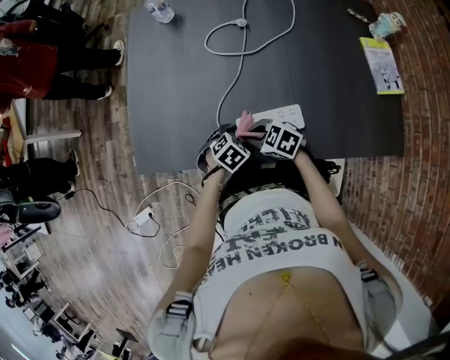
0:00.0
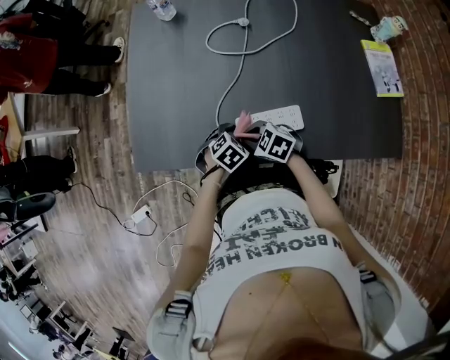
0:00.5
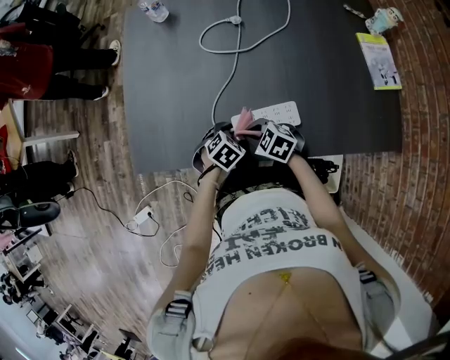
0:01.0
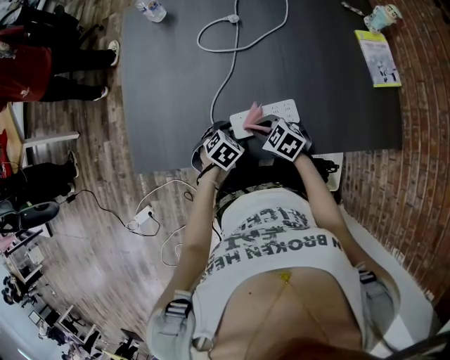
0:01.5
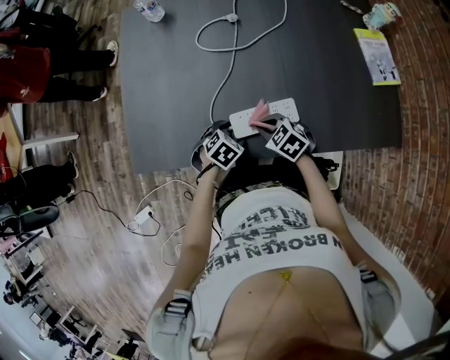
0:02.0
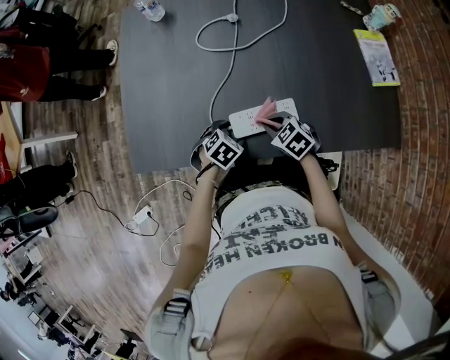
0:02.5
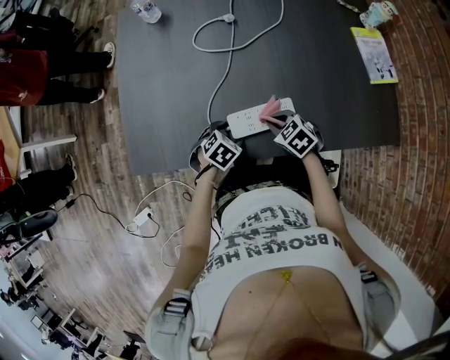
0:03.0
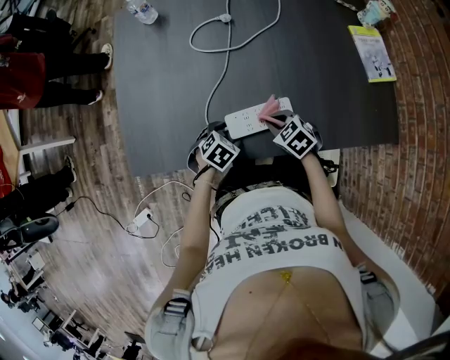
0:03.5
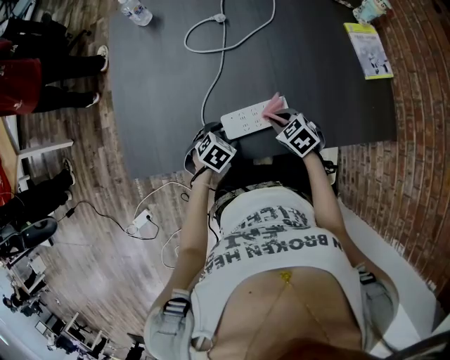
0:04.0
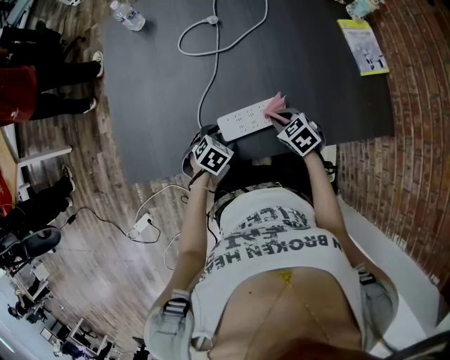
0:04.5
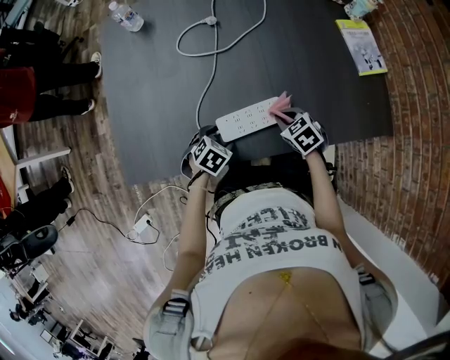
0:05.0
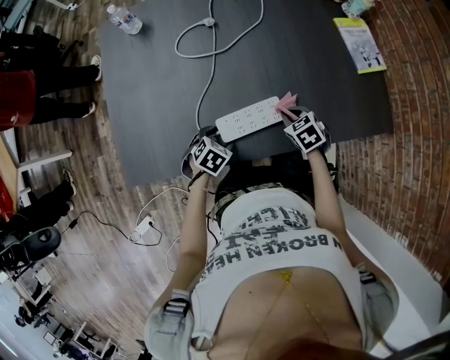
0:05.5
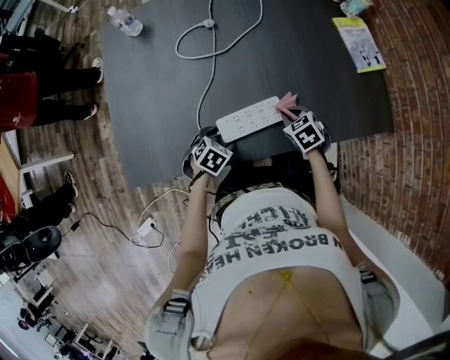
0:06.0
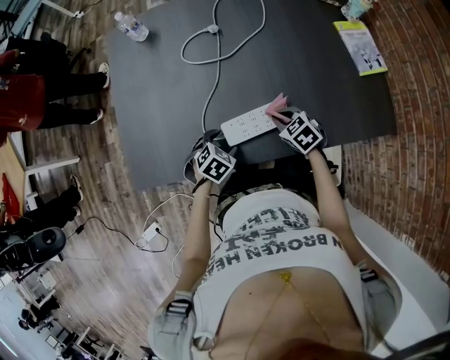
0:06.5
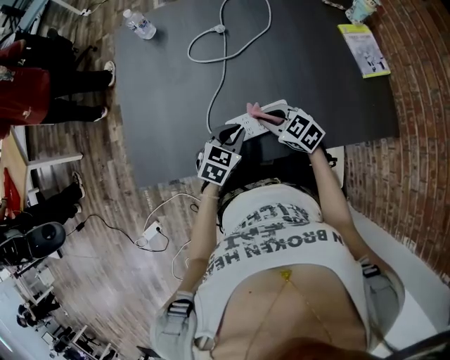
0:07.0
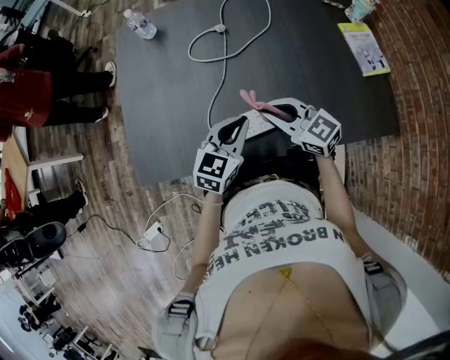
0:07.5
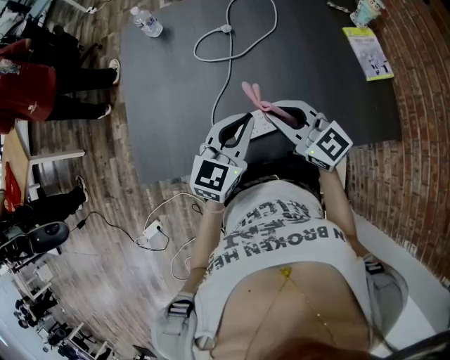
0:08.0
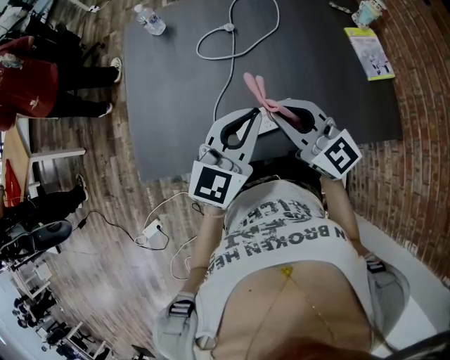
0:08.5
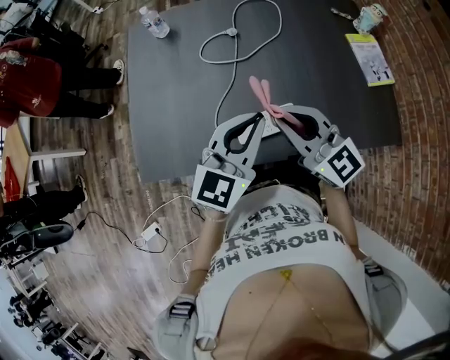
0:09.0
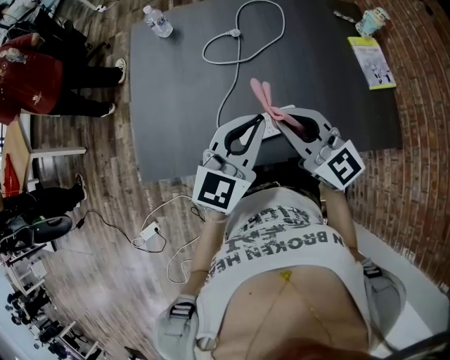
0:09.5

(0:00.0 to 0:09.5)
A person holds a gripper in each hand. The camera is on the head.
0:00.0 - 0:02.0: The right gripper moves some 5 cm.
0:02.0 - 0:04.0: The right gripper shifts by approximately 10 cm.
0:04.0 - 0:05.5: The right gripper goes roughly 5 cm to the right.
0:05.5 - 0:07.5: The right gripper goes approximately 20 cm upward and to the left, and tips its fingers upward by roughly 50 degrees; the left gripper goes approximately 20 cm upward, tips its fingers upward by some 40 degrees, and closes its fingers.
0:07.5 - 0:09.5: The two grippers go roughly 15 cm upward.

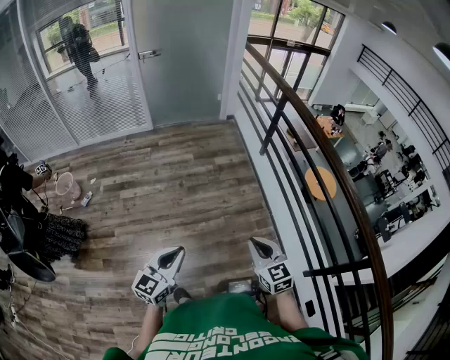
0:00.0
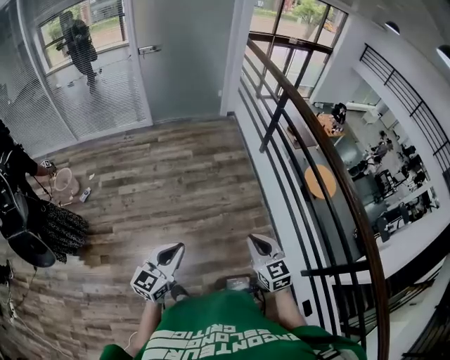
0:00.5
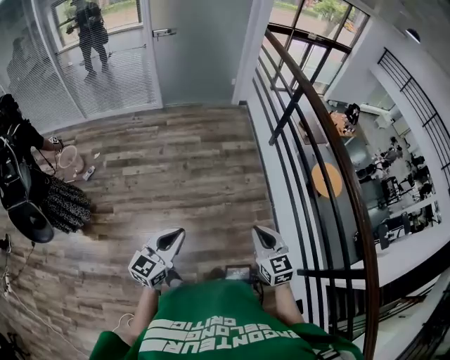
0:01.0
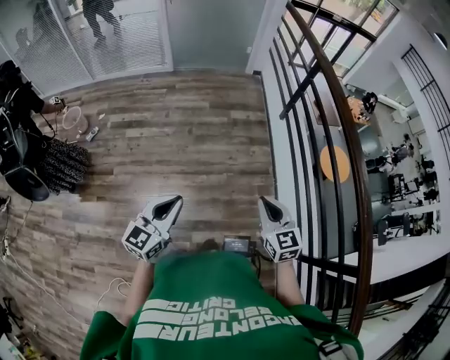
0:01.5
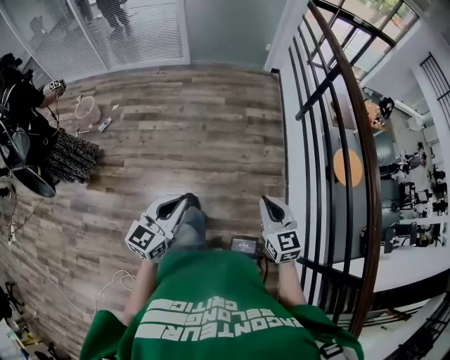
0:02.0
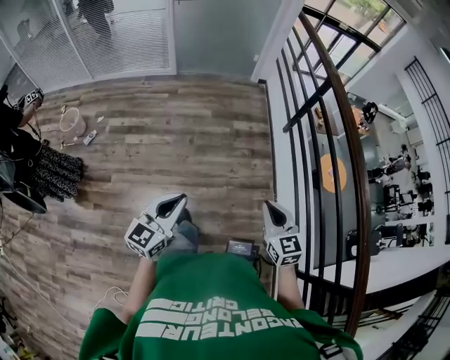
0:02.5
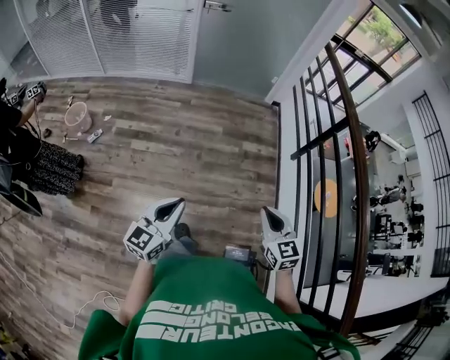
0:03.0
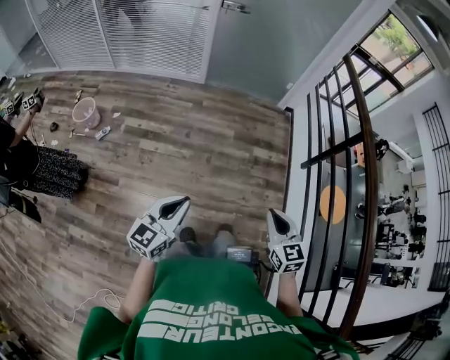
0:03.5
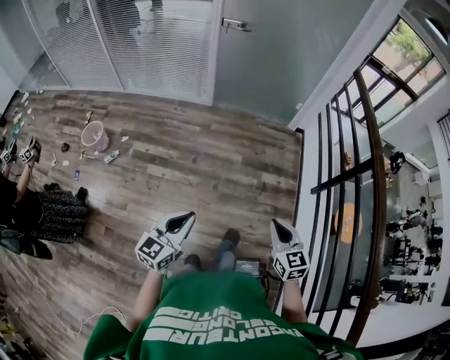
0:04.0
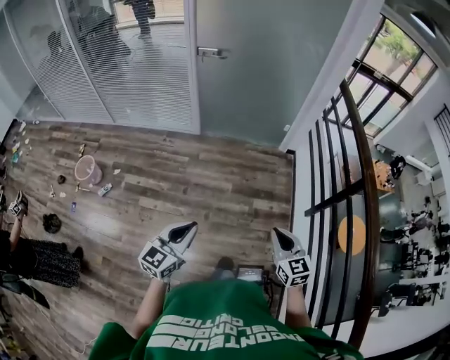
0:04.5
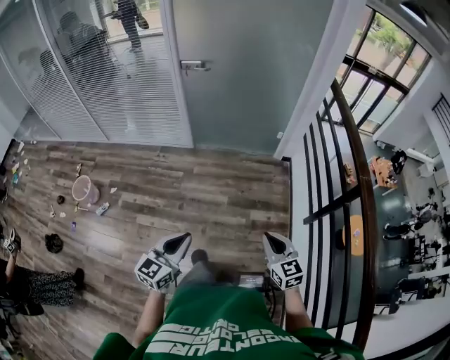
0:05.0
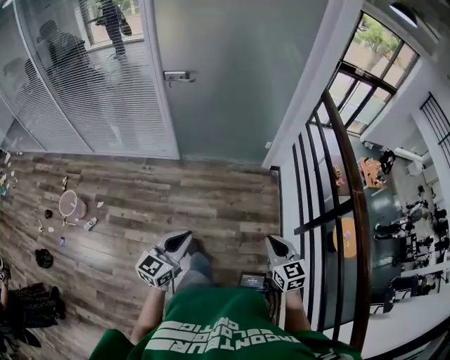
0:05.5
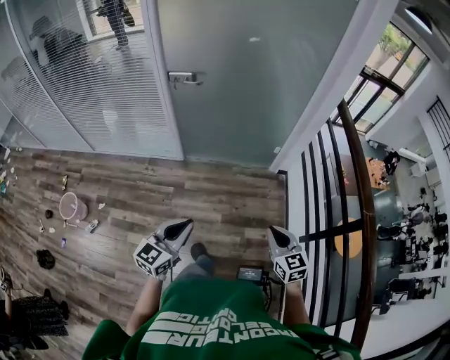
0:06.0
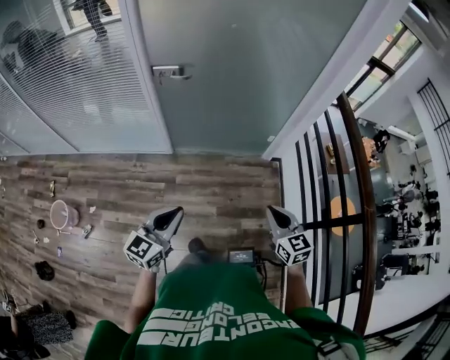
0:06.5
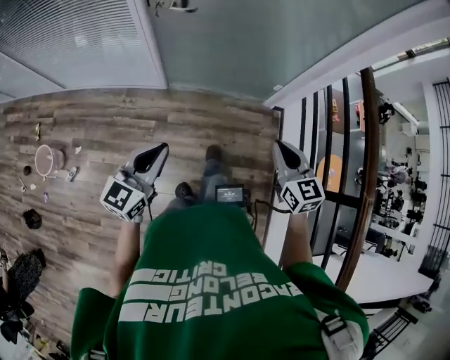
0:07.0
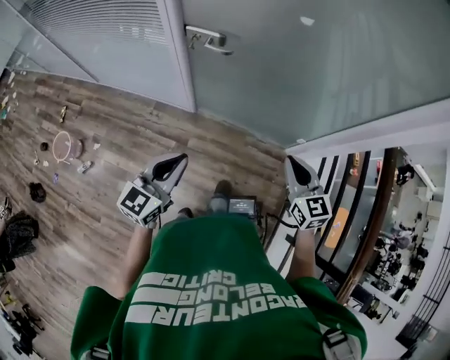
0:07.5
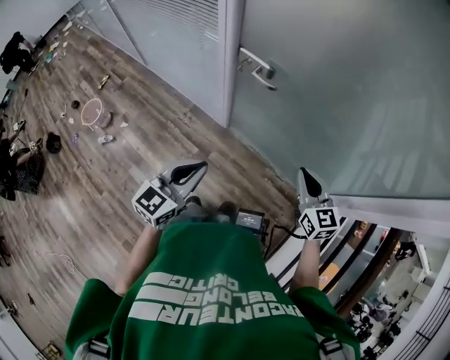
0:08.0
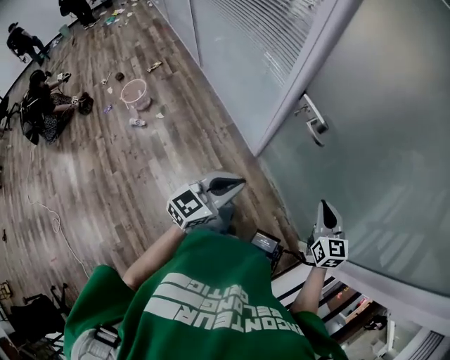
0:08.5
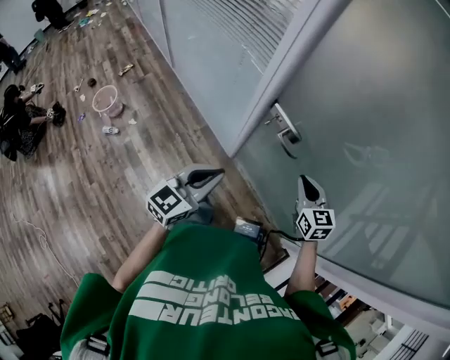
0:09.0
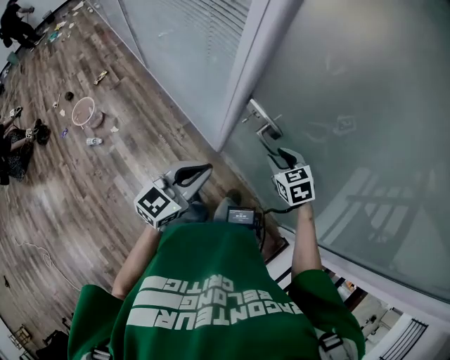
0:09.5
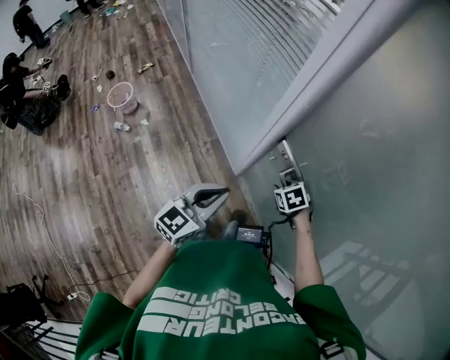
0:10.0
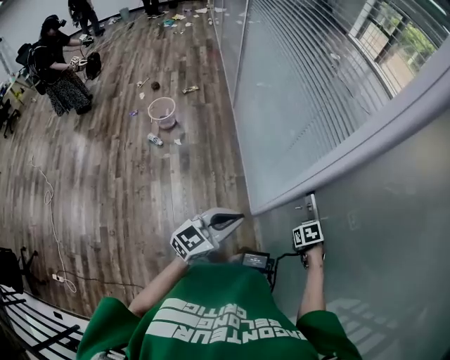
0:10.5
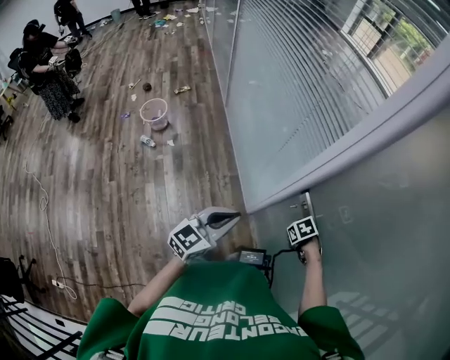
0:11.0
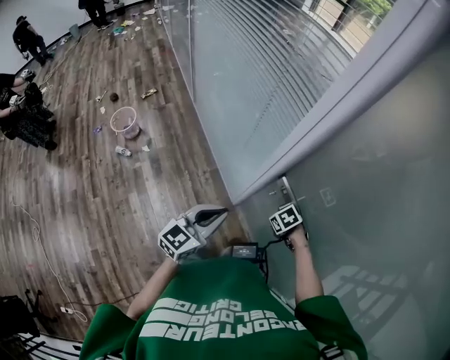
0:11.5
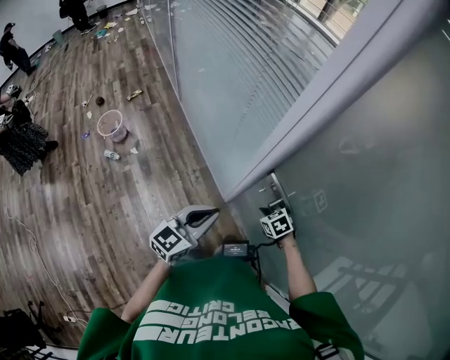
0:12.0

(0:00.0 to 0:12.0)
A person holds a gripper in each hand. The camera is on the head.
0:00.0 - 0:02.0: The right gripper is displaced forward by approximately 10 cm, while the left gripper is displaced forward by roughly 5 cm.
0:02.0 - 0:04.0: The grippers both shift forward by roughly 35 cm.
0:04.0 - 0:06.0: Both grippers move forward, roughly 40 cm.
0:06.0 - 0:08.0: The right gripper changes place by roughly 50 cm, and swivels some 30 degrees. Meanwhile the left gripper changes place by about 35 cm, and turns by roughly 30 degrees.
0:08.0 - 0:10.0: The left gripper heads forward, covering about 20 cm, and turns by some 20 degrees. Meanwhile the right gripper travels forward, downward and to the left by approximately 35 cm, tilts its fingers some 50 degrees downward, and opens its fingers.
0:10.0 - 0:12.0: The right gripper heads downward, covering approximately 5 cm, and closes up.

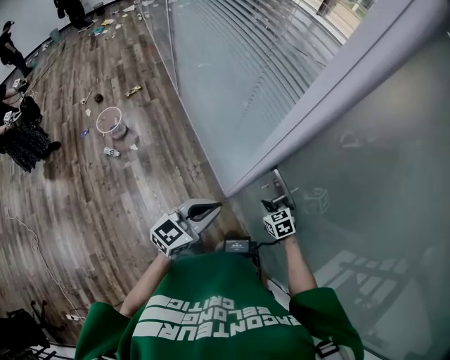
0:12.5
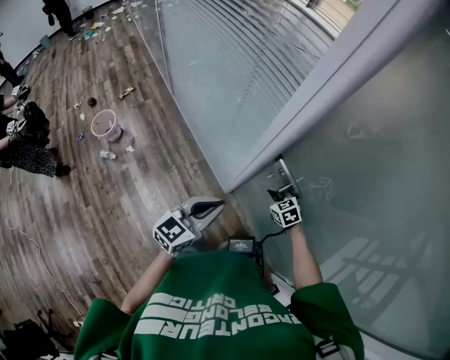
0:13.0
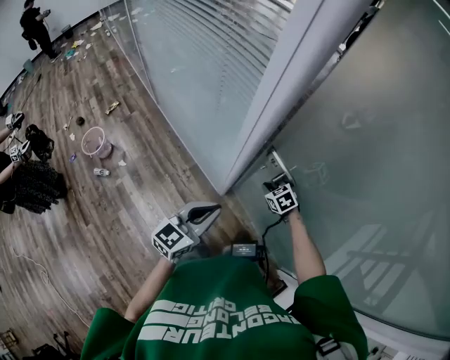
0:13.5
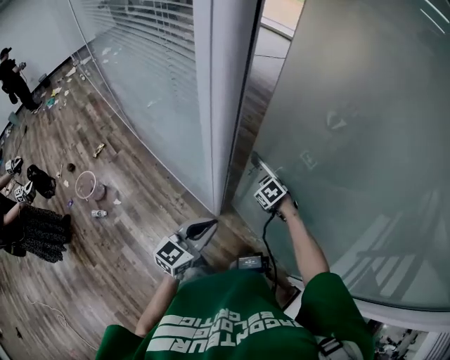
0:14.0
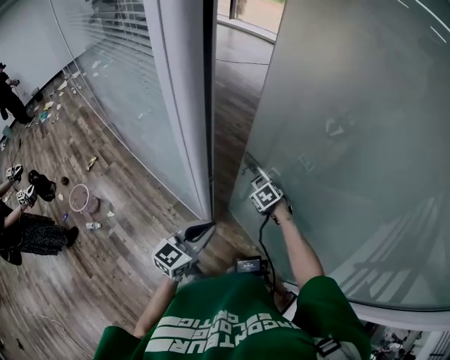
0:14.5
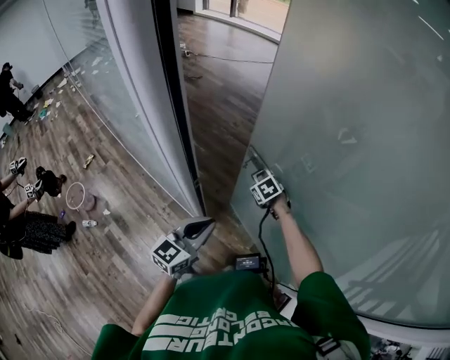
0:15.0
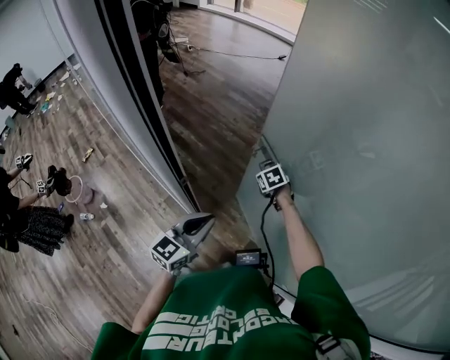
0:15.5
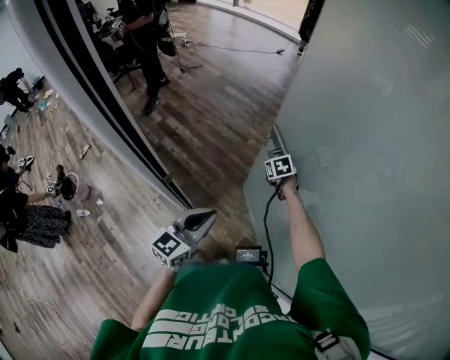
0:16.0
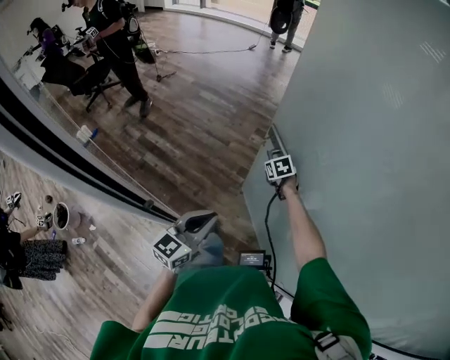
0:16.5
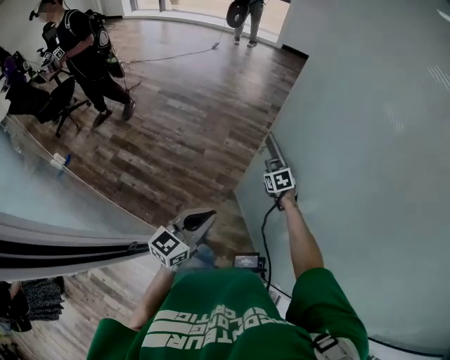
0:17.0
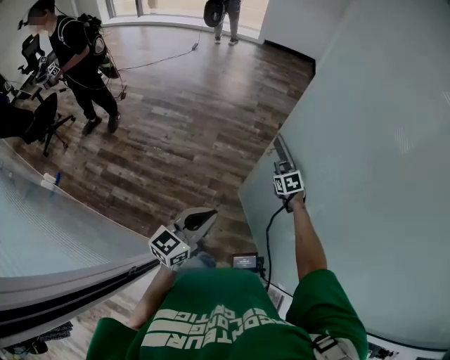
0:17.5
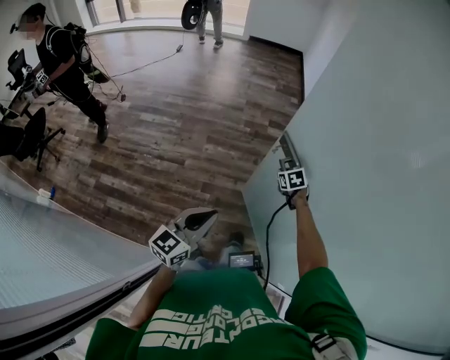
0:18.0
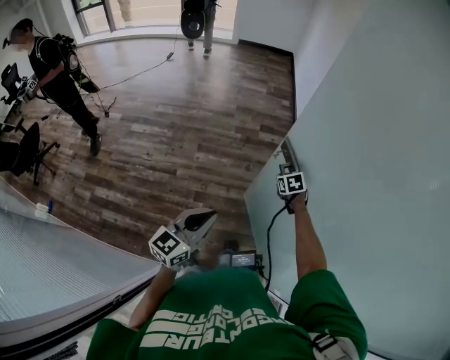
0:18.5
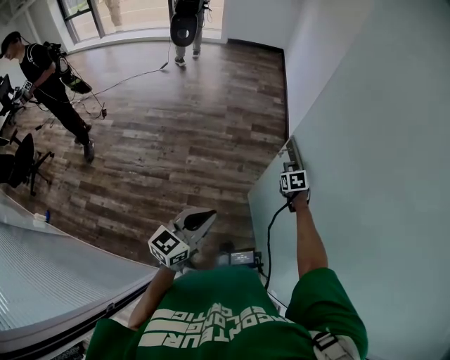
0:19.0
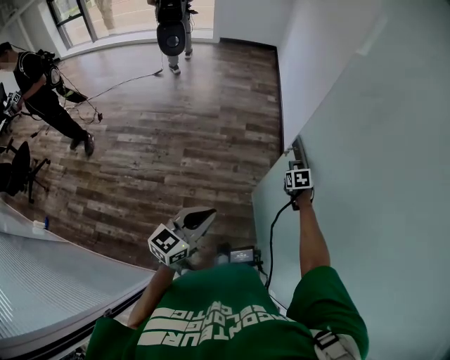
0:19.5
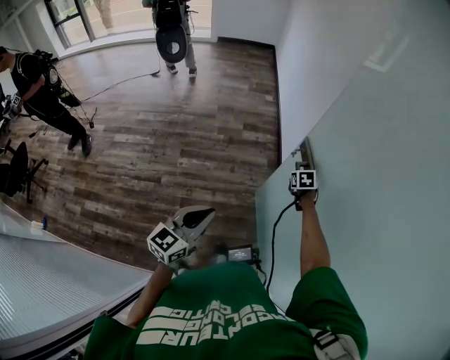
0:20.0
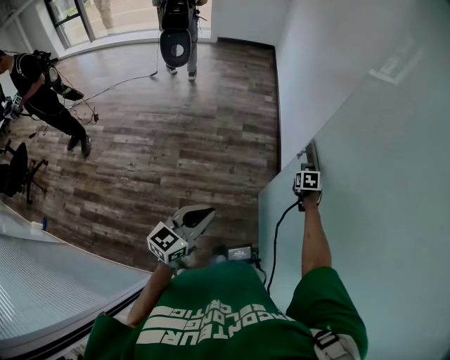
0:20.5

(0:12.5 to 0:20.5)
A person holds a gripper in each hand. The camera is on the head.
0:12.5 - 0:14.5: The left gripper moves to the right, approximately 10 cm, while the right gripper shifts roughly 15 cm to the right and forward, and rotates approximately 20 degrees.
0:14.5 - 0:16.5: Both grippers move forward and to the right, roughly 30 cm. The right gripper turns by approximately 30 degrees.
0:16.5 - 0:18.5: The right gripper goes about 35 cm to the right and forward, and swivels some 30 degrees, while the left gripper goes about 30 cm forward, and changes its angle by roughly 20 degrees.
0:18.5 - 0:20.5: The left gripper heads forward and to the right, covering some 10 cm. The right gripper moves to the right and forward, approximately 20 cm, and turns by about 20 degrees.
